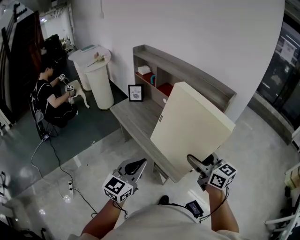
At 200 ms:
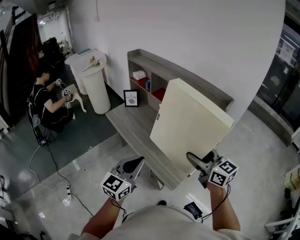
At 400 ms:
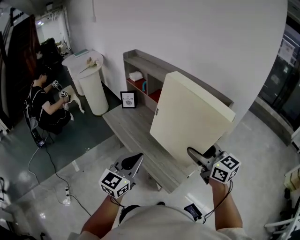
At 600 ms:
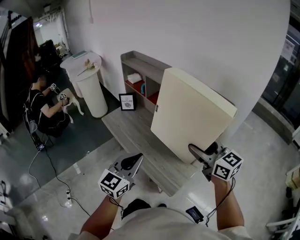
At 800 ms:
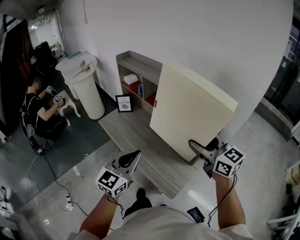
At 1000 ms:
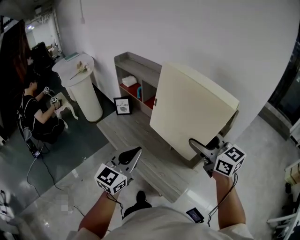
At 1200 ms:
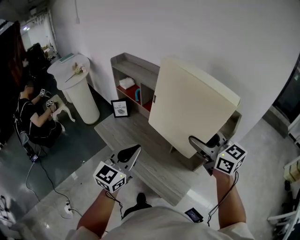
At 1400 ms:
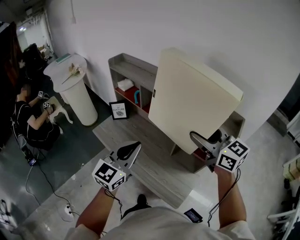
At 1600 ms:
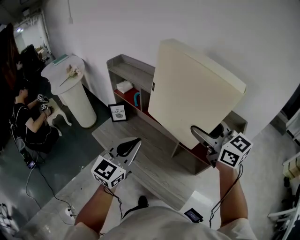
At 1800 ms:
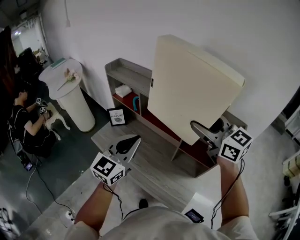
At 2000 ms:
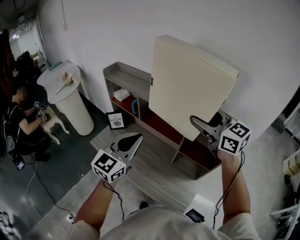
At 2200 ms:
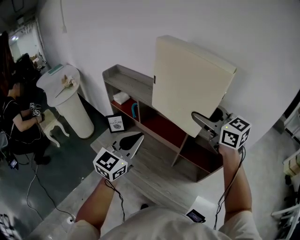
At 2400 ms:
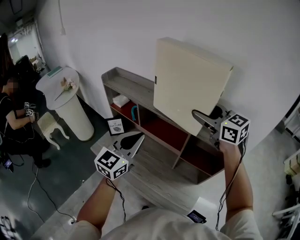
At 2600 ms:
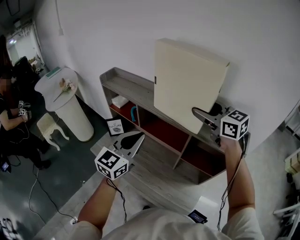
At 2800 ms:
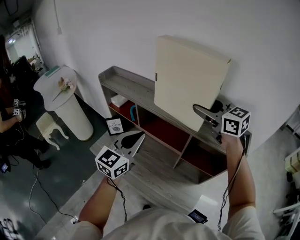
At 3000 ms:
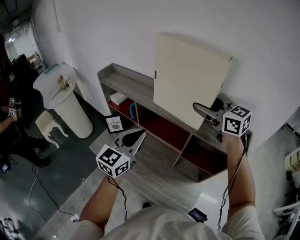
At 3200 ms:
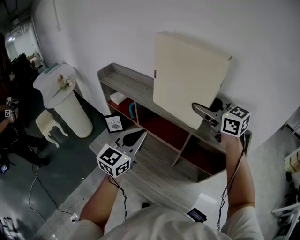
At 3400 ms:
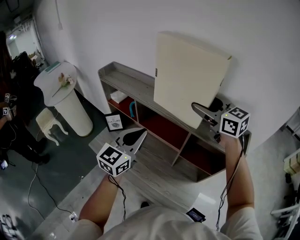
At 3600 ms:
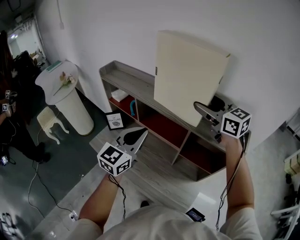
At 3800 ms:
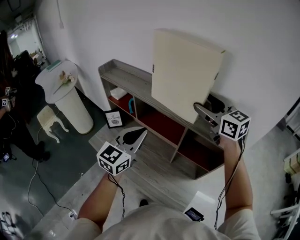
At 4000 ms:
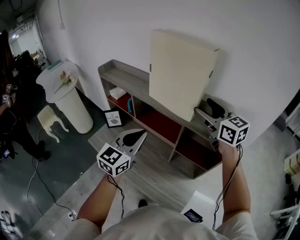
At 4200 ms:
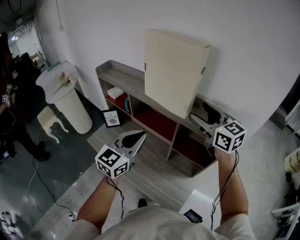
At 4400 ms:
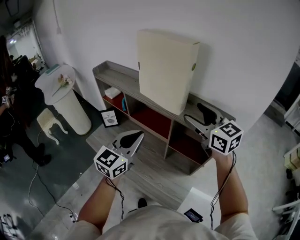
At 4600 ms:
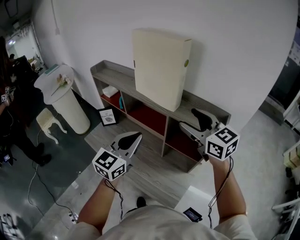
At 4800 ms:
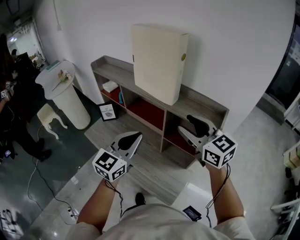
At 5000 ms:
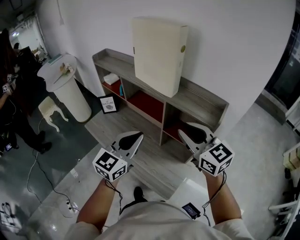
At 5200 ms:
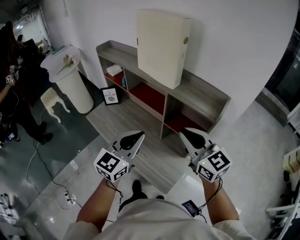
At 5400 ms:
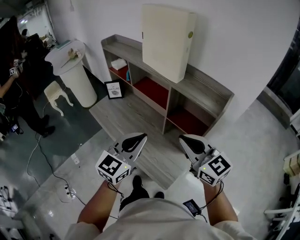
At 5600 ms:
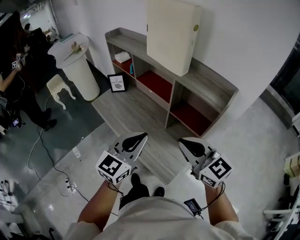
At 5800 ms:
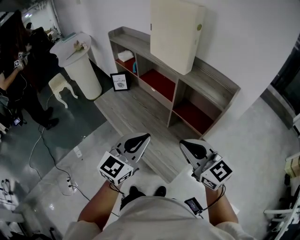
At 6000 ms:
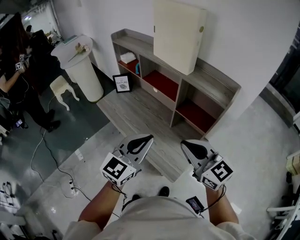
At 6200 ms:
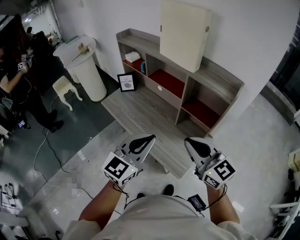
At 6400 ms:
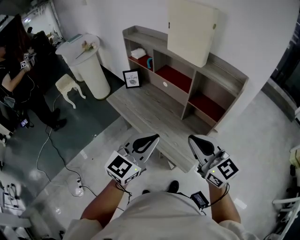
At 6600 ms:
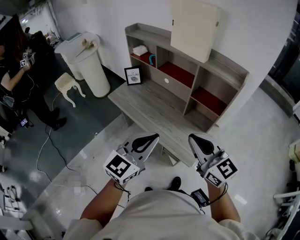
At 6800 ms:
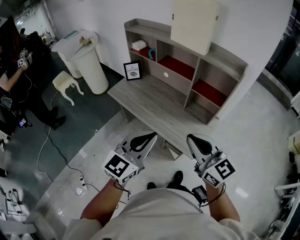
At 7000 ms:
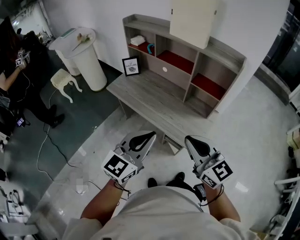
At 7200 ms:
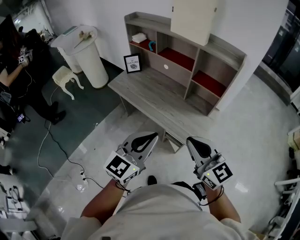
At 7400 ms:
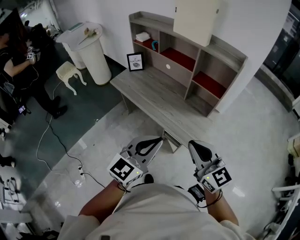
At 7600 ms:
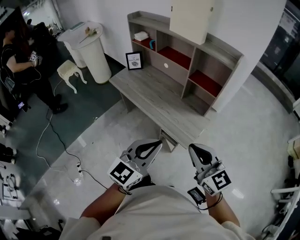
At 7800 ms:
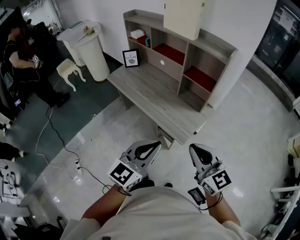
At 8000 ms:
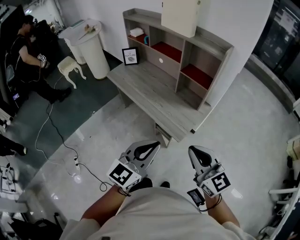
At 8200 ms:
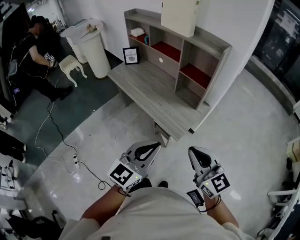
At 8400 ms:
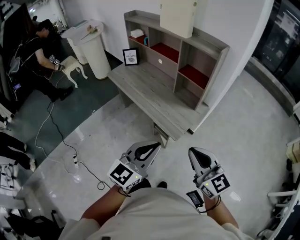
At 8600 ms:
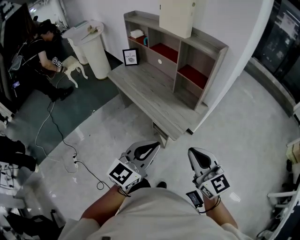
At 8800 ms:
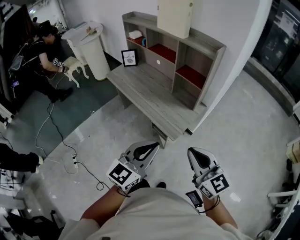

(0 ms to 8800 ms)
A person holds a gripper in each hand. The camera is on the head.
0 ms - 1400 ms: Both grippers travel together forward, some 30 cm.
1400 ms - 3000 ms: The two grippers go some 20 cm forward.
3000 ms - 4400 ms: The right gripper goes about 10 cm backward. The left gripper goes approximately 10 cm backward and to the right.
4400 ms - 5800 ms: The left gripper travels backward by some 20 cm. Meanwhile the right gripper shifts approximately 25 cm backward and downward, and closes its fingers.
5800 ms - 7400 ms: Both grippers move backward and to the left, some 25 cm.
7400 ms - 8800 ms: The grippers both shift to the right and backward by about 20 cm.

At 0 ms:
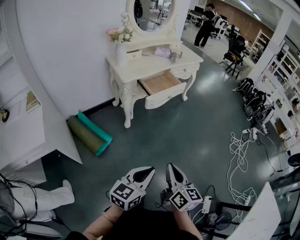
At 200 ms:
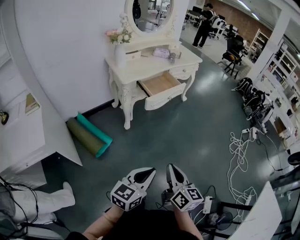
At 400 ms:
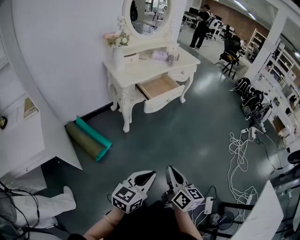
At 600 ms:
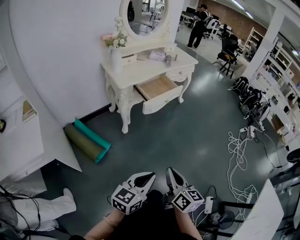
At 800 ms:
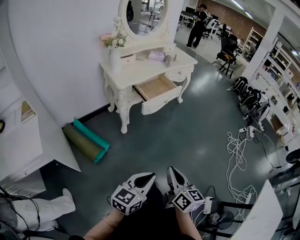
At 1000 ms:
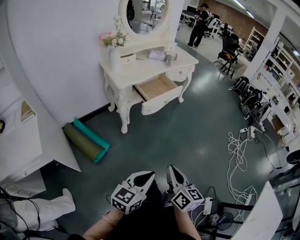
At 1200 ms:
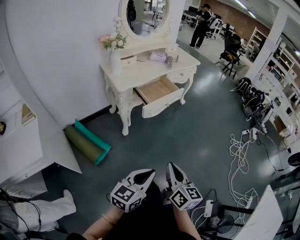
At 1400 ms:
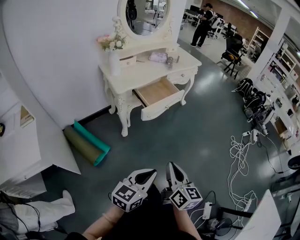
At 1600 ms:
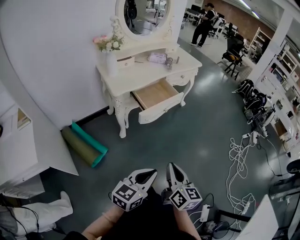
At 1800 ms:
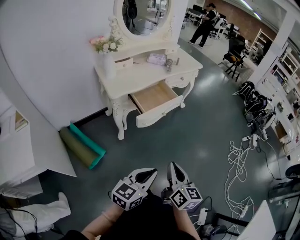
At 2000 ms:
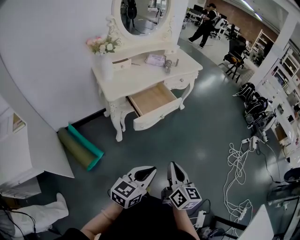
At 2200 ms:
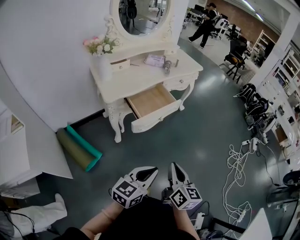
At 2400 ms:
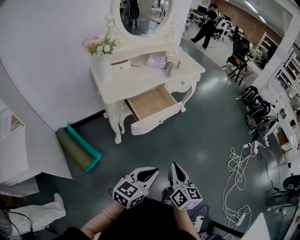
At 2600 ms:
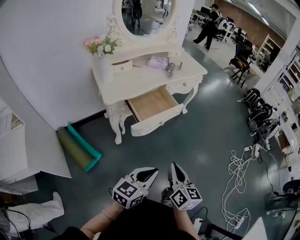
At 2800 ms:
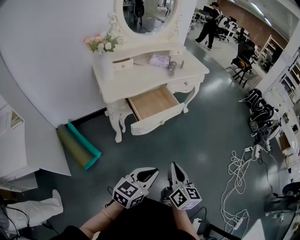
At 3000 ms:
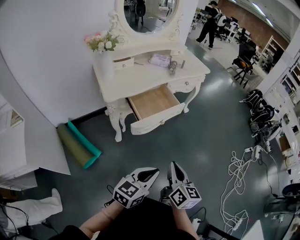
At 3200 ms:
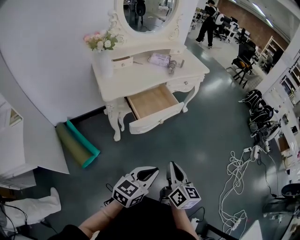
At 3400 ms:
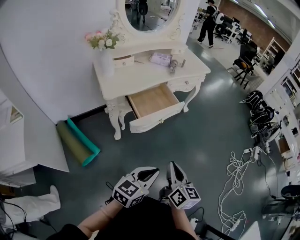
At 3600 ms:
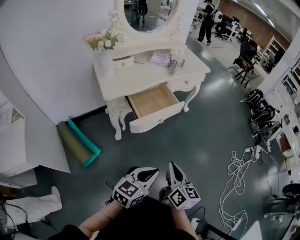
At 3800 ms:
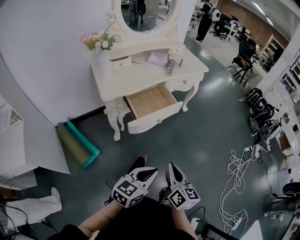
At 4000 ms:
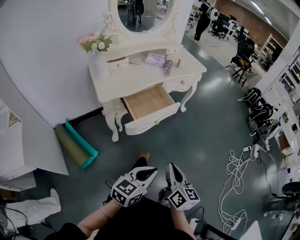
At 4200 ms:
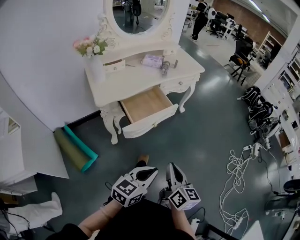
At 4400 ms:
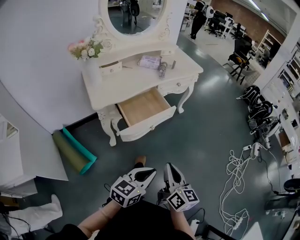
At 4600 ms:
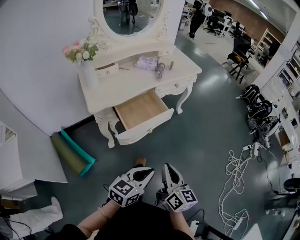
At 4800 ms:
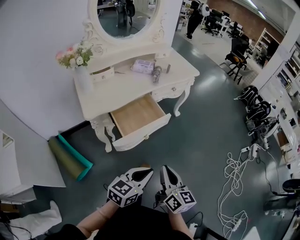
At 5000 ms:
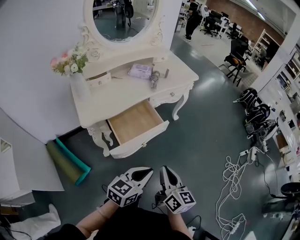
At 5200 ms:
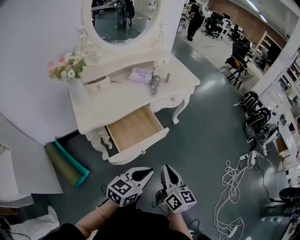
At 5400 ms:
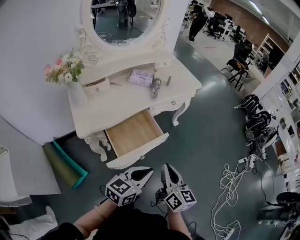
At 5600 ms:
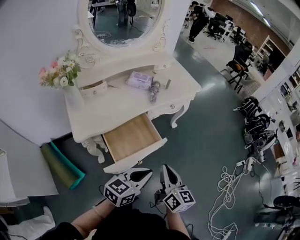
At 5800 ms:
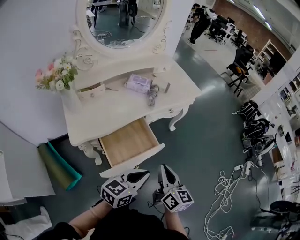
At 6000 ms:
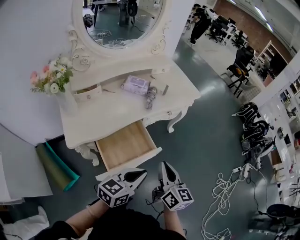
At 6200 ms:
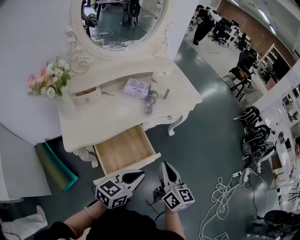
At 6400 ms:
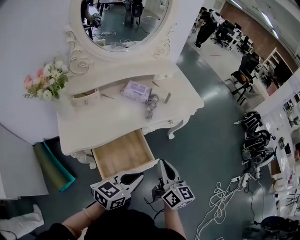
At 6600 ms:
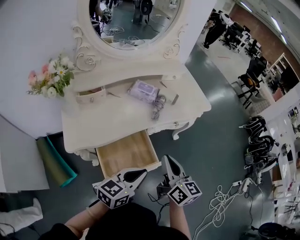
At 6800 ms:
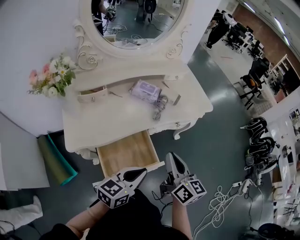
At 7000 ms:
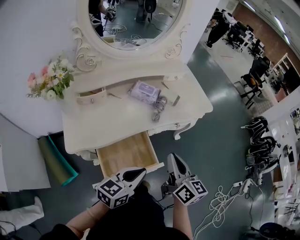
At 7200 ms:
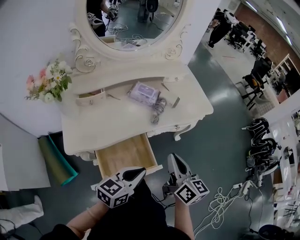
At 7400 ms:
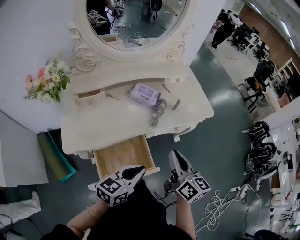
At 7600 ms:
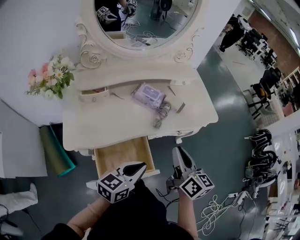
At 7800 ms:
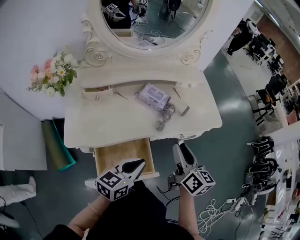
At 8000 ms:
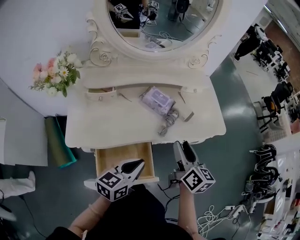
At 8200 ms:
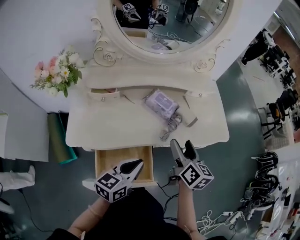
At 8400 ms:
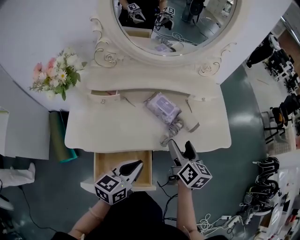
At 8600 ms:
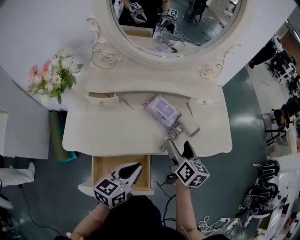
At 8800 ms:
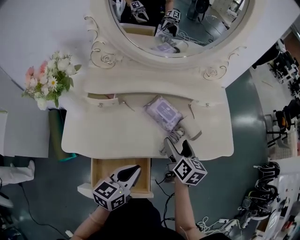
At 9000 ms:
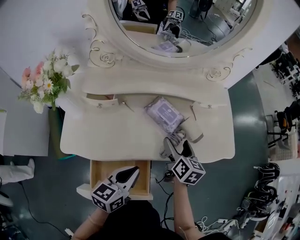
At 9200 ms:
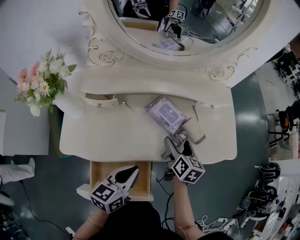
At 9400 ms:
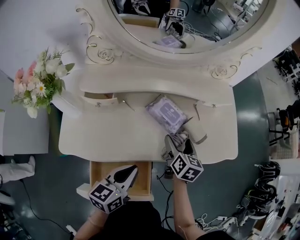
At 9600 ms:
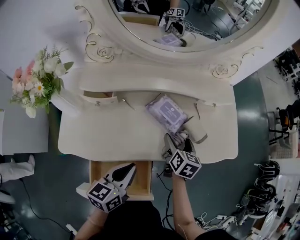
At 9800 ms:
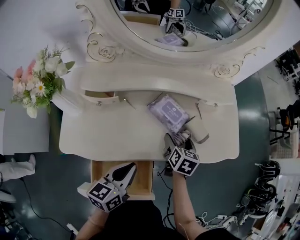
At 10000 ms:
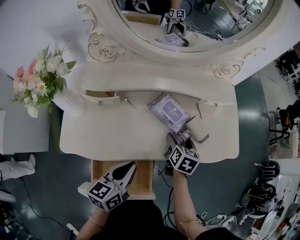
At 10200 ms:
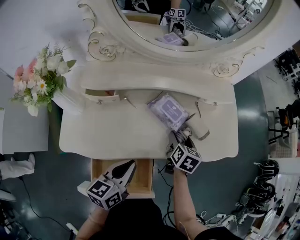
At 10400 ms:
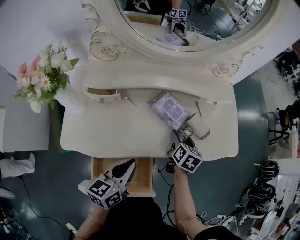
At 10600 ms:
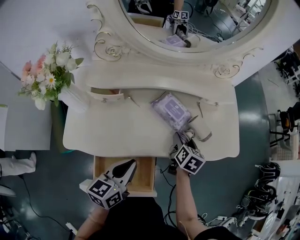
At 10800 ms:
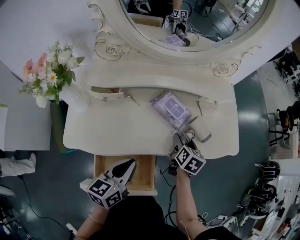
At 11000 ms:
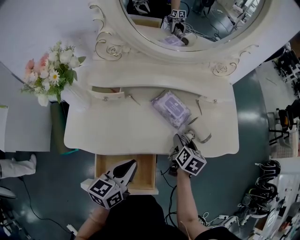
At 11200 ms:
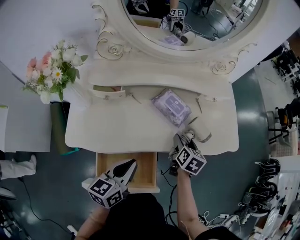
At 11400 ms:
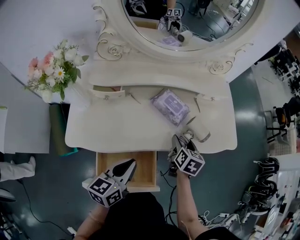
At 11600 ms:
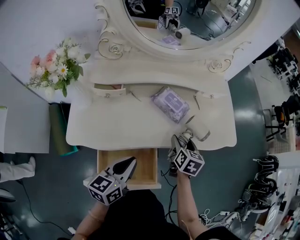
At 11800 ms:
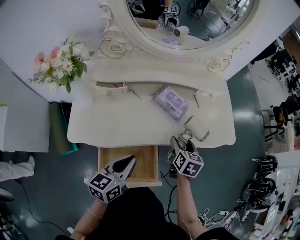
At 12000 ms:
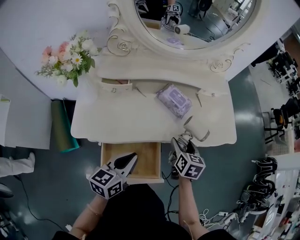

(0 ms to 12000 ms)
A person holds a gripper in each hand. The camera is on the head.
0 ms - 1600 ms: Both grippers move forward, some 15 cm.
1600 ms - 3000 ms: The two grippers go approximately 15 cm forward.
3000 ms - 4400 ms: The left gripper moves forward, some 5 cm.
4400 ms - 6000 ms: Both grippers travel together forward, about 30 cm.
6000 ms - 7600 ms: The two grippers go approximately 15 cm forward.
7600 ms - 9000 ms: The left gripper travels forward by roughly 10 cm, and changes its angle by about 20 degrees. The right gripper travels forward and downward by some 25 cm, swivels some 20 degrees, and opens its fingers.
9000 ms - 10400 ms: The right gripper goes roughly 5 cm downward.
10400 ms - 12000 ms: The left gripper shifts approximately 5 cm backward; the right gripper is displaced backward by roughly 10 cm.

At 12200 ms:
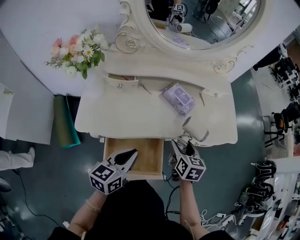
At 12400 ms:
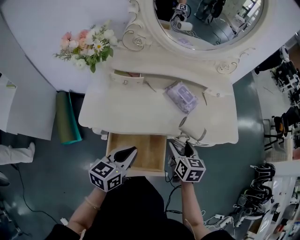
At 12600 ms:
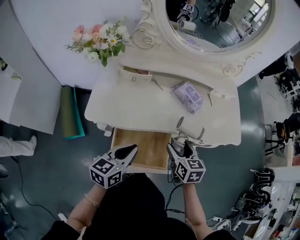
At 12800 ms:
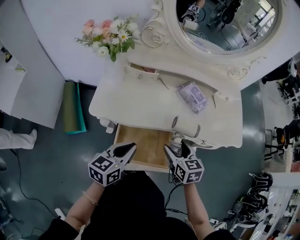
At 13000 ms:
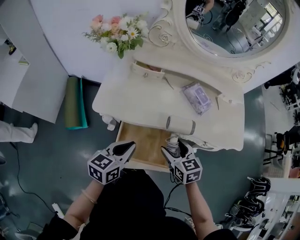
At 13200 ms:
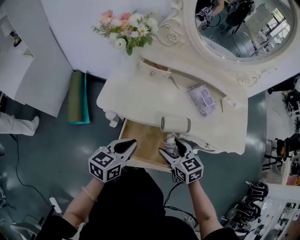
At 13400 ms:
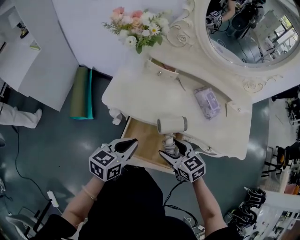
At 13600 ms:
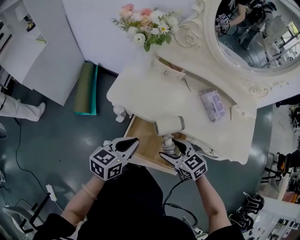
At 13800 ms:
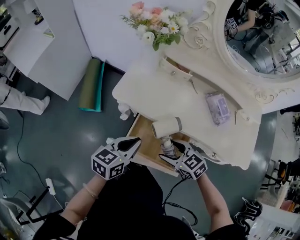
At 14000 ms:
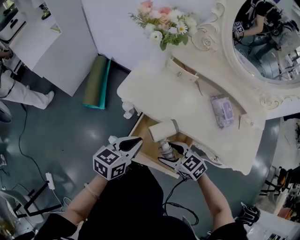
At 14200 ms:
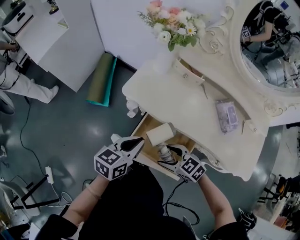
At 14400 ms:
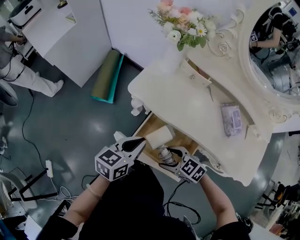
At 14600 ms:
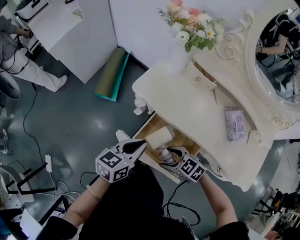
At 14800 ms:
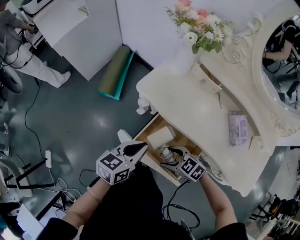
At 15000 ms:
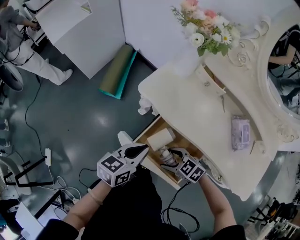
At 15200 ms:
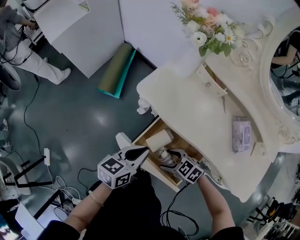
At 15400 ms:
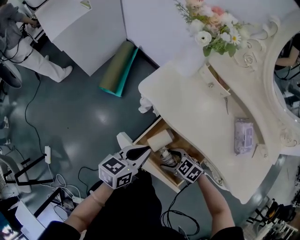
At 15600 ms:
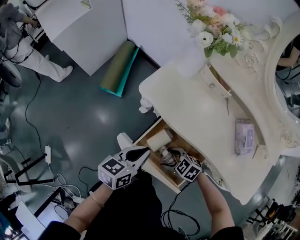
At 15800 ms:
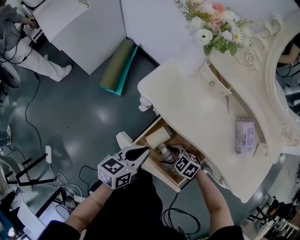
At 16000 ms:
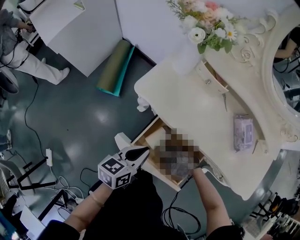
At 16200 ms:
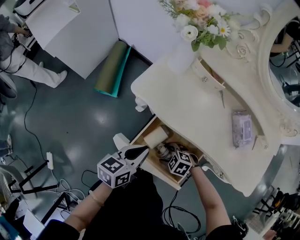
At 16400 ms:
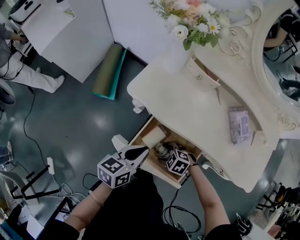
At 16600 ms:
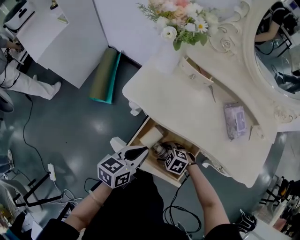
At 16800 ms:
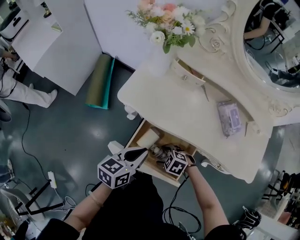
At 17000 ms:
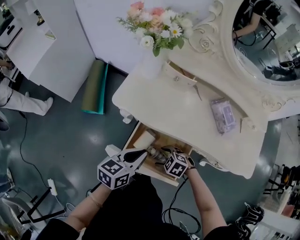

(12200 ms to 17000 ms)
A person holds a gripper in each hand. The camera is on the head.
12200 ms - 13800 ms: The left gripper ends up some 10 cm from where it was; the right gripper changes place by some 20 cm, and changes its angle by approximately 80 degrees.
13800 ms - 15400 ms: The right gripper travels downward by some 10 cm, and turns by approximately 30 degrees.
15400 ms - 17000 ms: The grippers make only small movements.
